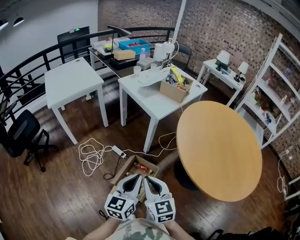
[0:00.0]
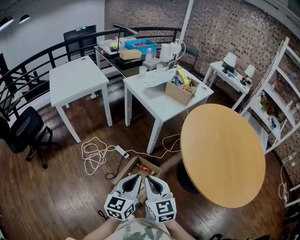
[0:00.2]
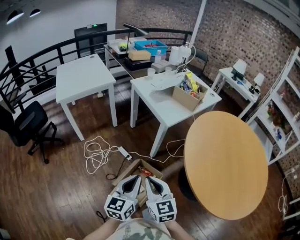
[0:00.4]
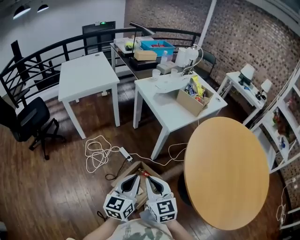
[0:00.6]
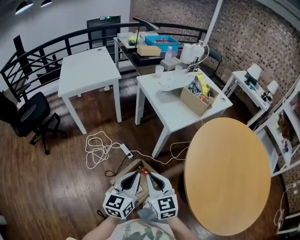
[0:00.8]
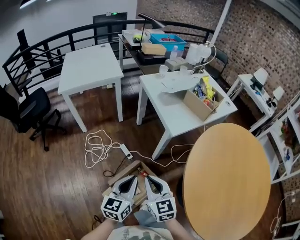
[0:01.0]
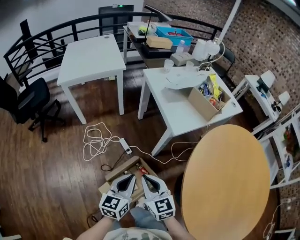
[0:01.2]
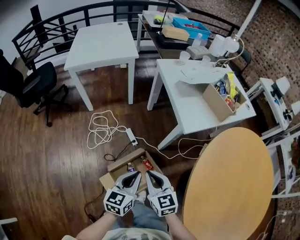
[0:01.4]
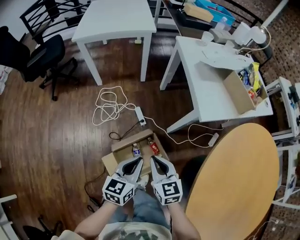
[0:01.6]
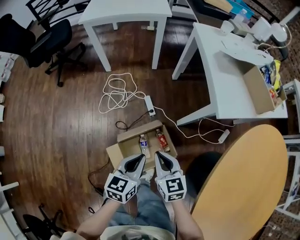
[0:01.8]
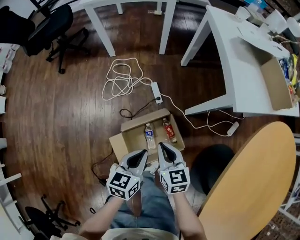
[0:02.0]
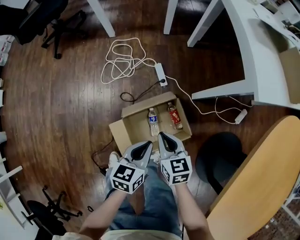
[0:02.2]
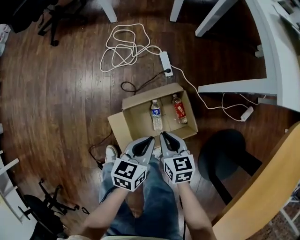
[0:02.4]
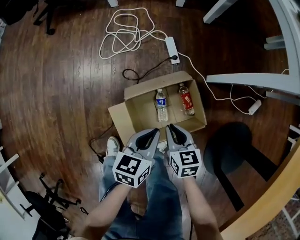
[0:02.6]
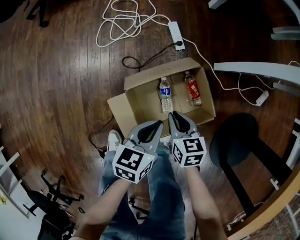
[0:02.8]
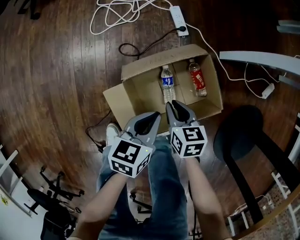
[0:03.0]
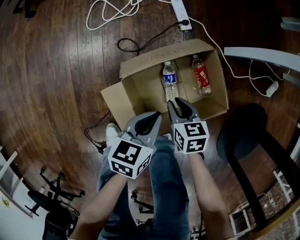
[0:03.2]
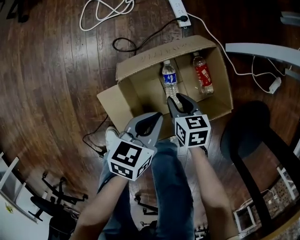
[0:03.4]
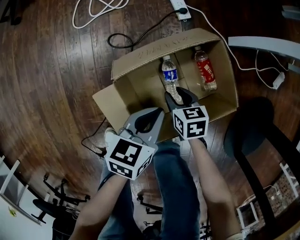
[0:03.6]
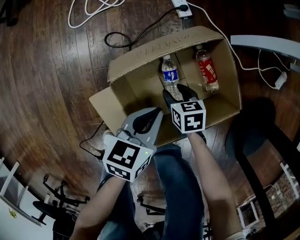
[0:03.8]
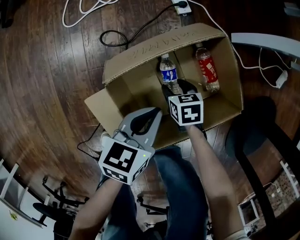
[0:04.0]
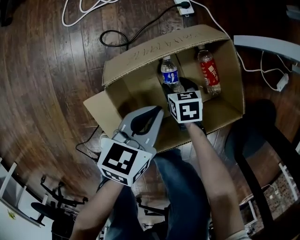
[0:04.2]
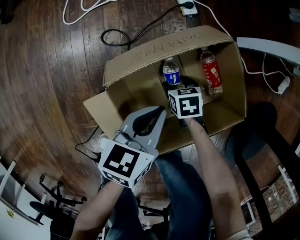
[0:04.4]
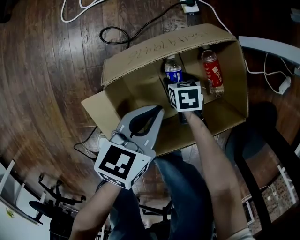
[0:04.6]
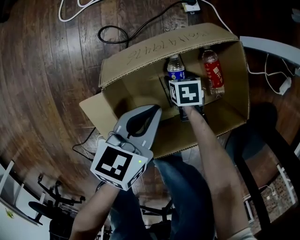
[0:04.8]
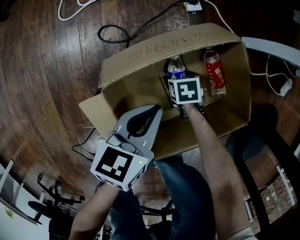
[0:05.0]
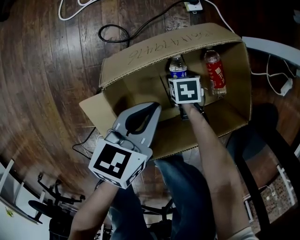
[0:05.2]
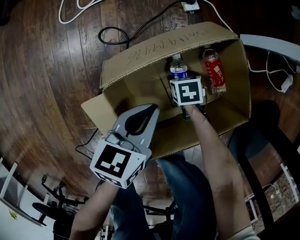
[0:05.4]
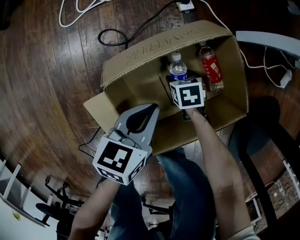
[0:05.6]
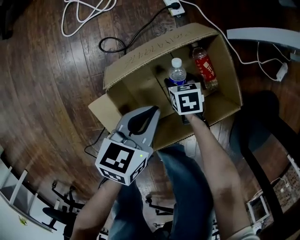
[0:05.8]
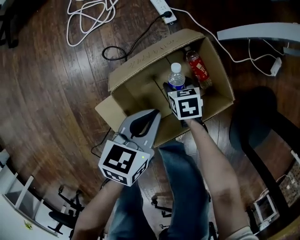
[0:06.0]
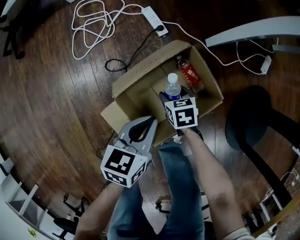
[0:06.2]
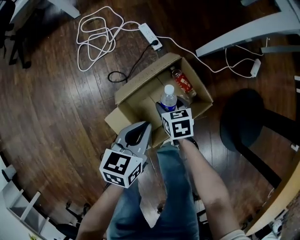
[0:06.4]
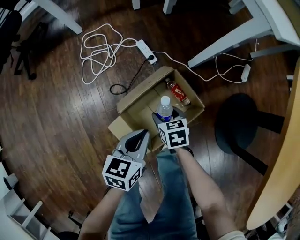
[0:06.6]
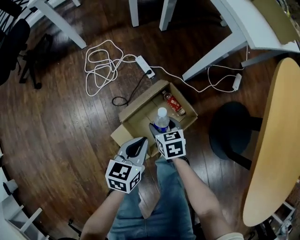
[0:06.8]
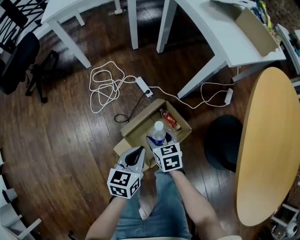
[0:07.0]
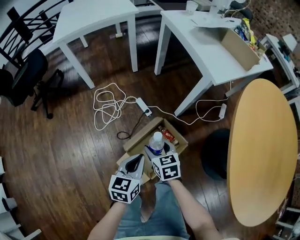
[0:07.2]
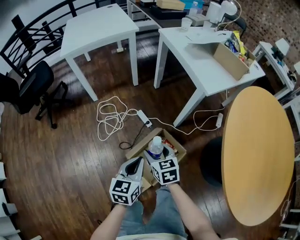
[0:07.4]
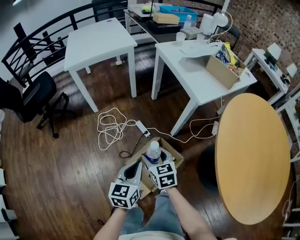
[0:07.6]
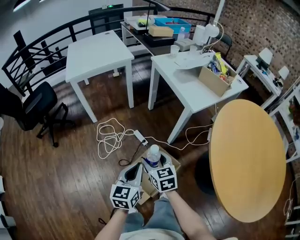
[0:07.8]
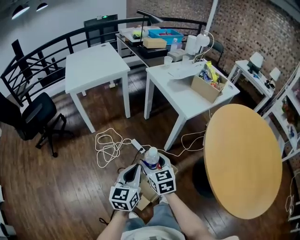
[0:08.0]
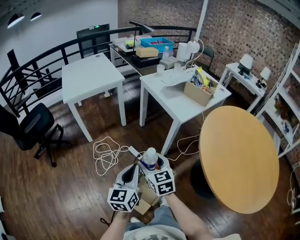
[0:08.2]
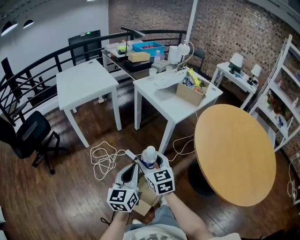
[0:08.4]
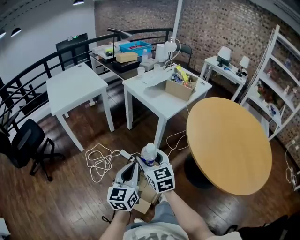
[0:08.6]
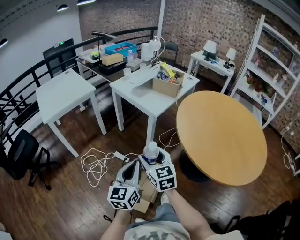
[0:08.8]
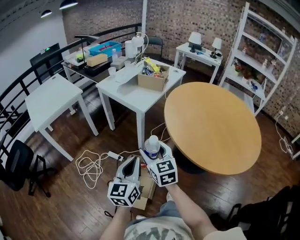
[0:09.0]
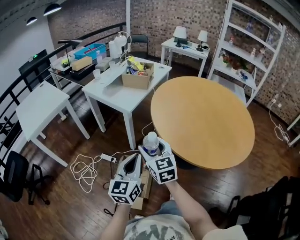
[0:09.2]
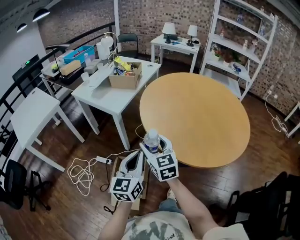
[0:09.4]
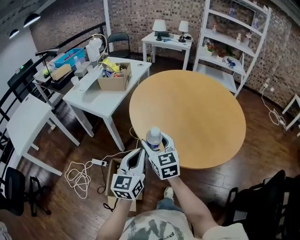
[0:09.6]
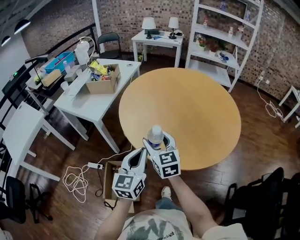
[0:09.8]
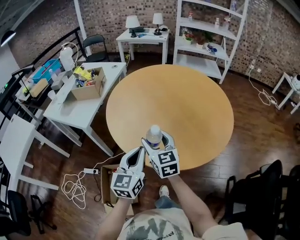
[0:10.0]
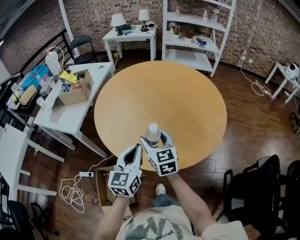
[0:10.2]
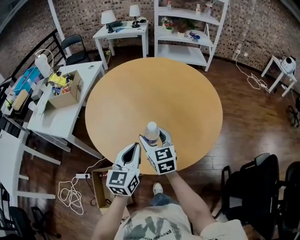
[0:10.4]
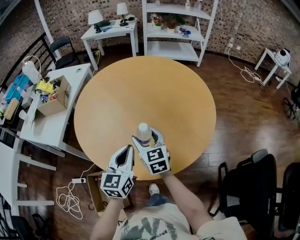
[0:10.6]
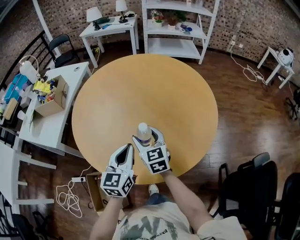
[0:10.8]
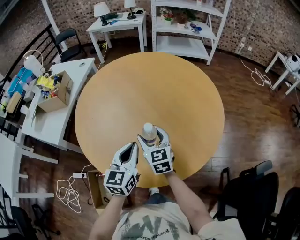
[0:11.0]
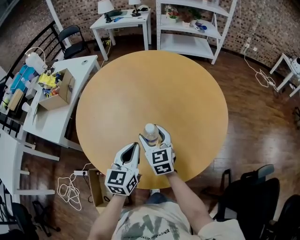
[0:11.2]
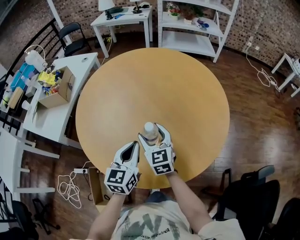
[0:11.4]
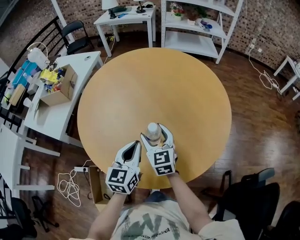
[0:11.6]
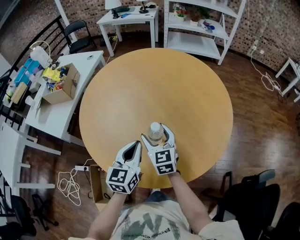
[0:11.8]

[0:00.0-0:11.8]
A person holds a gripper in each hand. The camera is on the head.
0:00.0 to 0:01.4: The grippers both shift forward and downward by some 20 cm. The right gripper turns by approximately 30 degrees, while the left gripper changes its angle by approximately 20 degrees.
0:01.4 to 0:03.0: The two grippers go about 50 cm downward. The right gripper changes its angle by about 30 degrees, while the left gripper changes its angle by approximately 30 degrees.
0:03.0 to 0:04.4: The left gripper travels downward by some 15 cm, while the right gripper travels downward by approximately 25 cm, turns by about 20 degrees, and opens up.
0:04.4 to 0:06.0: The two grippers go some 10 cm upward.
0:06.0 to 0:07.4: The two grippers go roughly 50 cm upward. The right gripper rotates about 30 degrees. Meanwhile the left gripper changes its angle by roughly 20 degrees.
0:07.4 to 0:08.8: The two grippers go some 25 cm upward. The right gripper turns by about 30 degrees. The left gripper changes its angle by some 30 degrees.
0:08.8 to 0:10.4: The pair of grippers is taken some 50 cm. The left gripper rotates roughly 40 degrees, while the right gripper rotates about 40 degrees.
0:10.4 to 0:11.8: The grippers both shift forward and downward by roughly 10 cm.

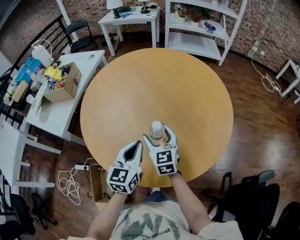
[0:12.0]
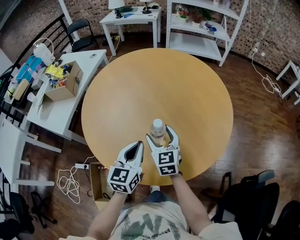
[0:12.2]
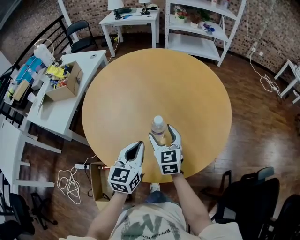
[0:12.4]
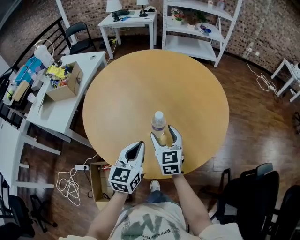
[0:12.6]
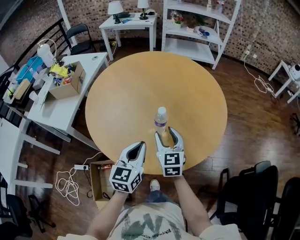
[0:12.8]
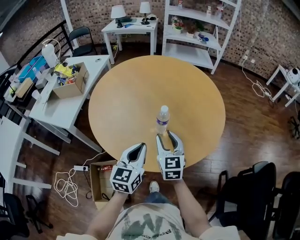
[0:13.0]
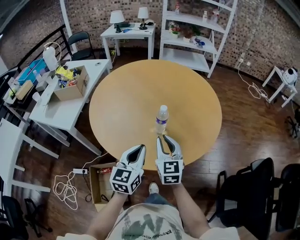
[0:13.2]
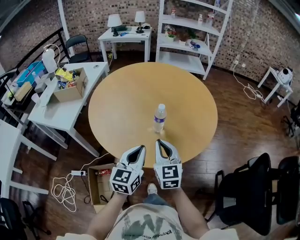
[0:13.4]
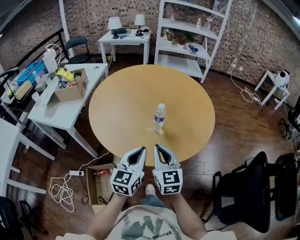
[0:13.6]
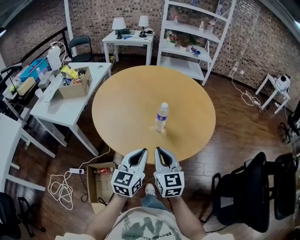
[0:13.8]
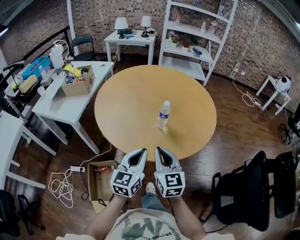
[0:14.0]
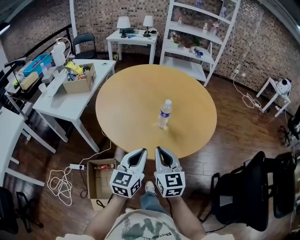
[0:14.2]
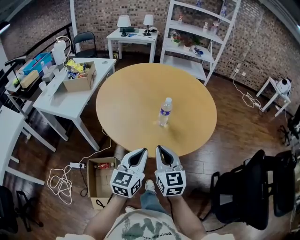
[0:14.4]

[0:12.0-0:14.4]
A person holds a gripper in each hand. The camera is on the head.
0:12.0 to 0:13.2: The right gripper is displaced backward and upward by some 15 cm, and closes. The left gripper shifts approximately 10 cm backward.
0:13.2 to 0:14.4: Both grippers move backward, about 15 cm.

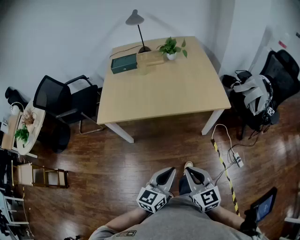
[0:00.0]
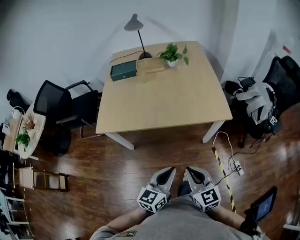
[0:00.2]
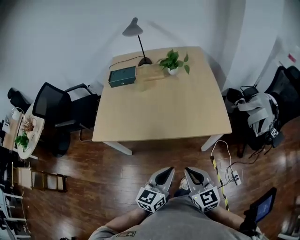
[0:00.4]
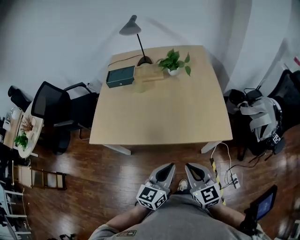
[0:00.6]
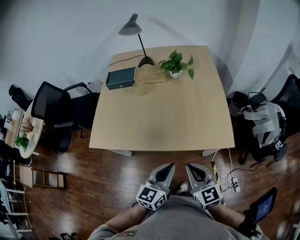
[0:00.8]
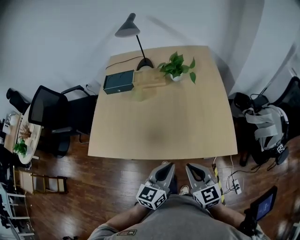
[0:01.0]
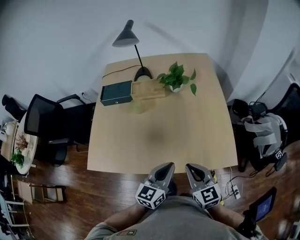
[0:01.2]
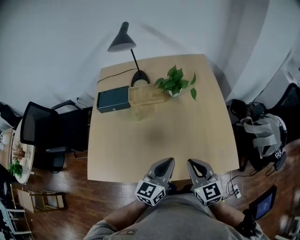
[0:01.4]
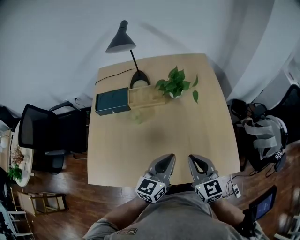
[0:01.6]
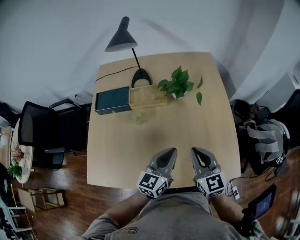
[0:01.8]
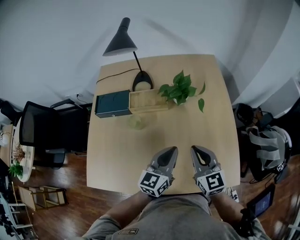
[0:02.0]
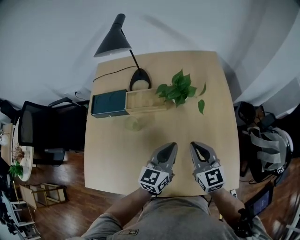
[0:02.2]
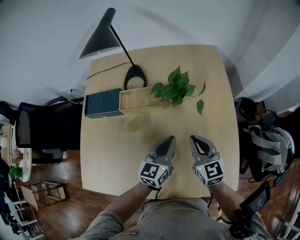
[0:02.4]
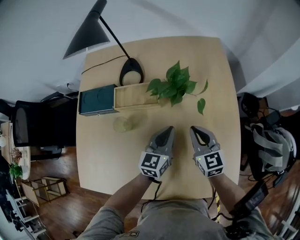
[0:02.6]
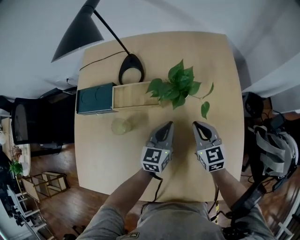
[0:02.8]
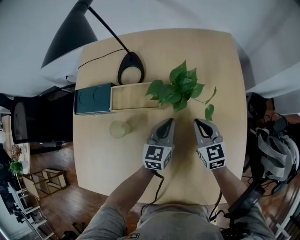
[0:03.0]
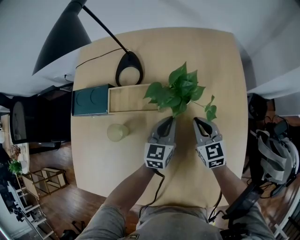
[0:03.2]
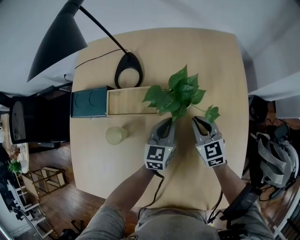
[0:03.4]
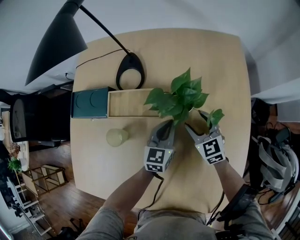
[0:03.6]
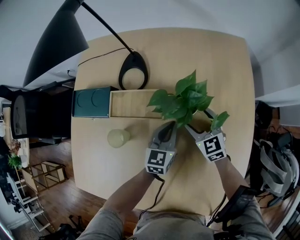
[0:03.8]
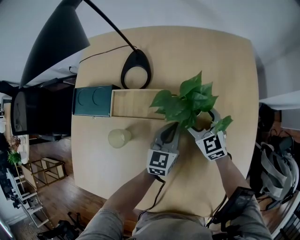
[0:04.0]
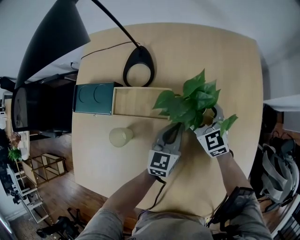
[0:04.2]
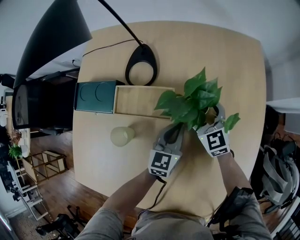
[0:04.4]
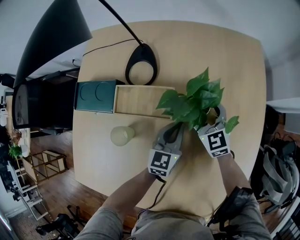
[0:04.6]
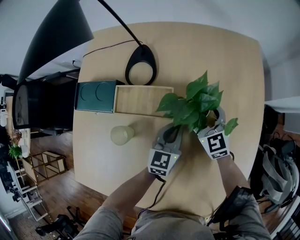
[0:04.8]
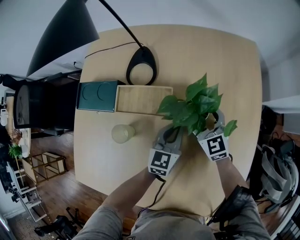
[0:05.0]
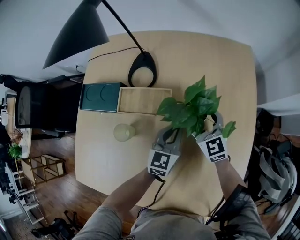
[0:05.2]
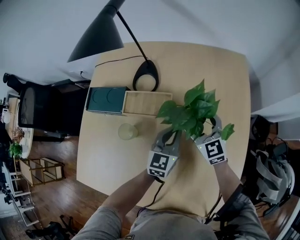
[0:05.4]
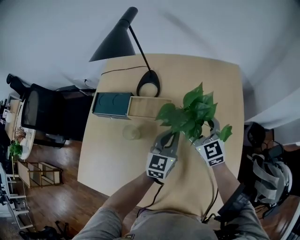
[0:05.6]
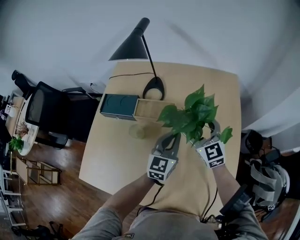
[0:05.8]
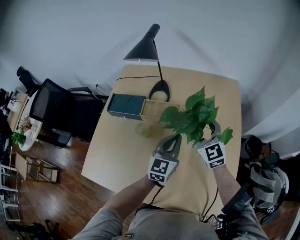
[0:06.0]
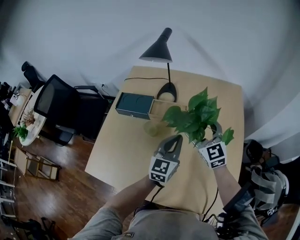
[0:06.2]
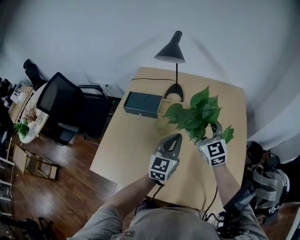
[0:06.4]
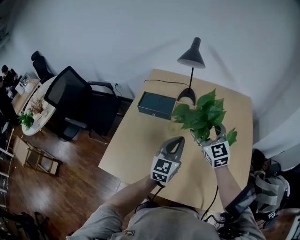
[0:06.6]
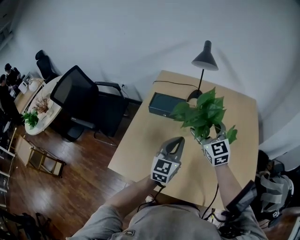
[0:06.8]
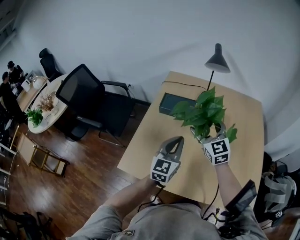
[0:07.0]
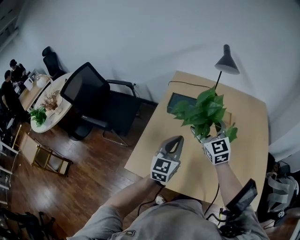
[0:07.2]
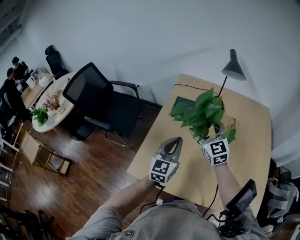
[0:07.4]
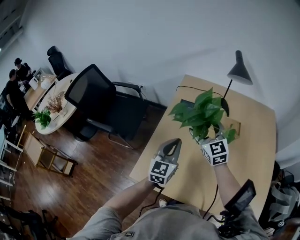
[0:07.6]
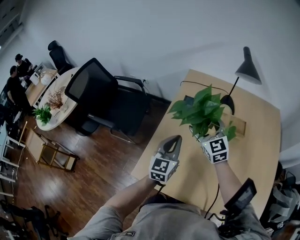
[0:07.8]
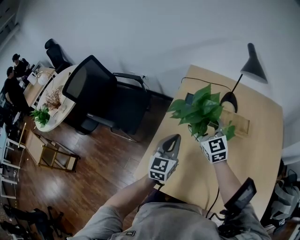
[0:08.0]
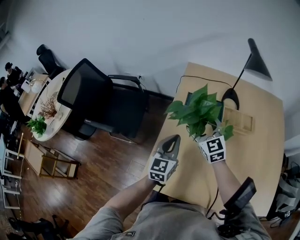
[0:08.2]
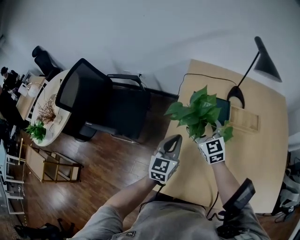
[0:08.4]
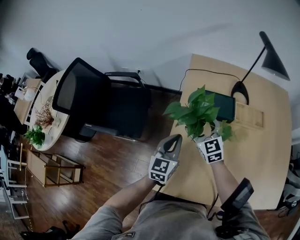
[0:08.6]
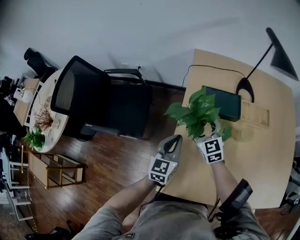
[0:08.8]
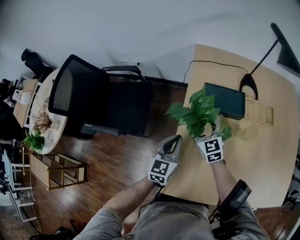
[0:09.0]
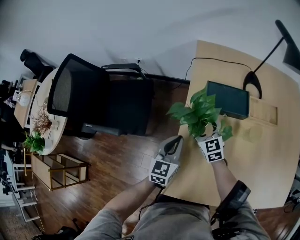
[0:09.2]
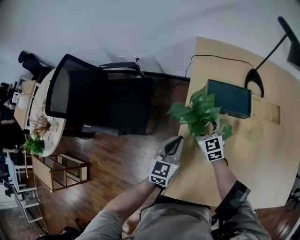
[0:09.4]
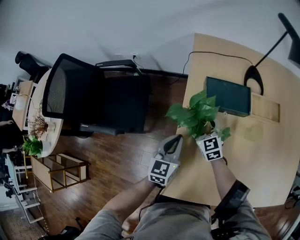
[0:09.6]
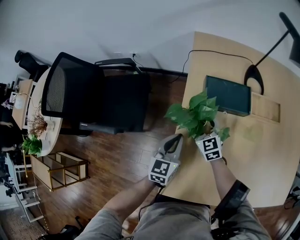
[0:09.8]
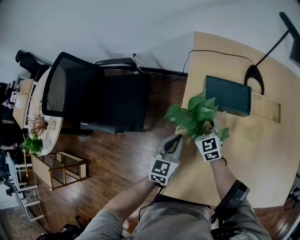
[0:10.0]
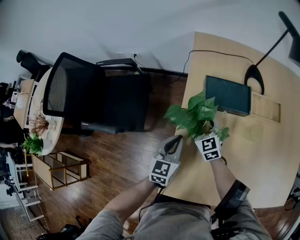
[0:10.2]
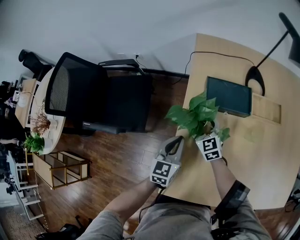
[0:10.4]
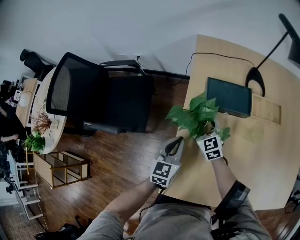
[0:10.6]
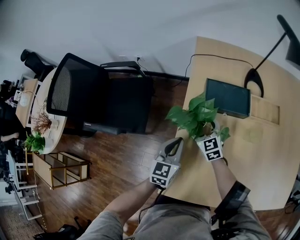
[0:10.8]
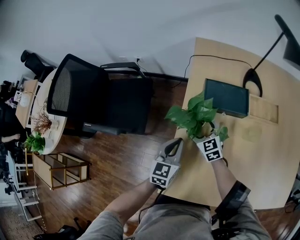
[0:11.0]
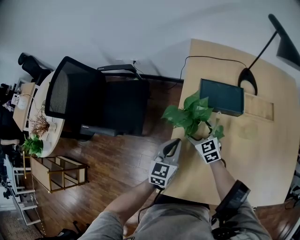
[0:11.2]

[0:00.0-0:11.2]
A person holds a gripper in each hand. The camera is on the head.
0:00.0 to 0:01.6: Both grippers are carried forward, about 50 cm.
0:01.6 to 0:03.2: The grippers both shift forward and downward by approximately 35 cm. The left gripper changes its angle by some 20 degrees.
0:03.2 to 0:04.8: The right gripper goes approximately 10 cm forward, and opens up.
0:04.8 to 0:06.4: The two grippers go about 30 cm upward, backward and to the left.
0:06.4 to 0:08.0: Both grippers move to the left, about 35 cm.
0:08.0 to 0:09.6: The left gripper travels downward, to the left and forward by some 20 cm; the right gripper heads downward and to the left, covering about 25 cm.
0:09.6 to 0:11.2: The grippers make only small movements.
